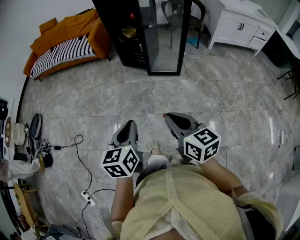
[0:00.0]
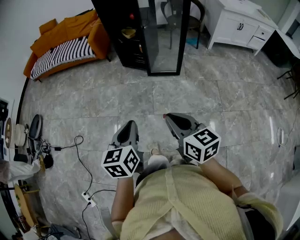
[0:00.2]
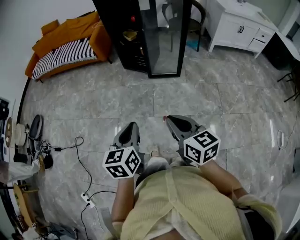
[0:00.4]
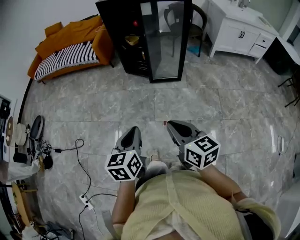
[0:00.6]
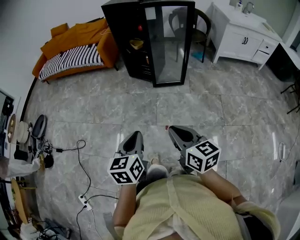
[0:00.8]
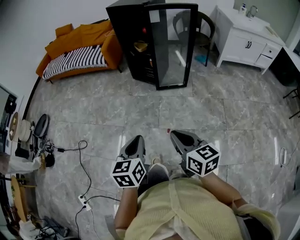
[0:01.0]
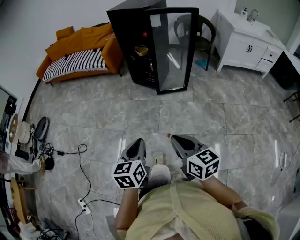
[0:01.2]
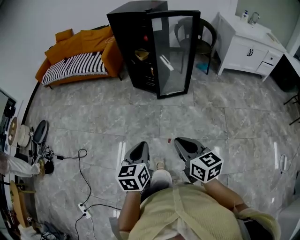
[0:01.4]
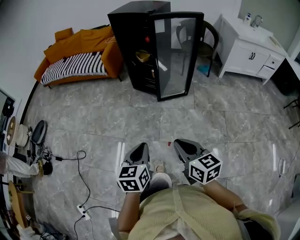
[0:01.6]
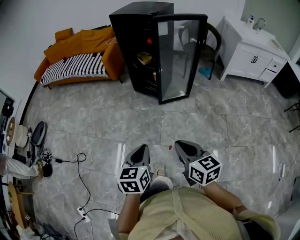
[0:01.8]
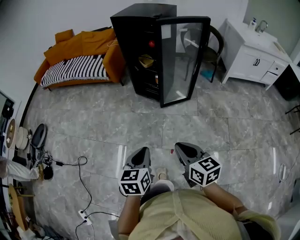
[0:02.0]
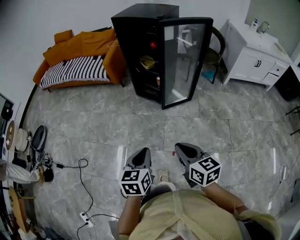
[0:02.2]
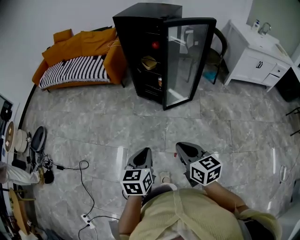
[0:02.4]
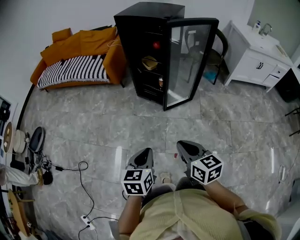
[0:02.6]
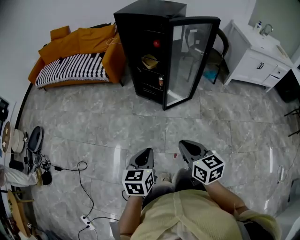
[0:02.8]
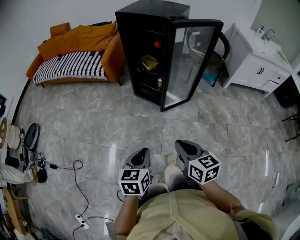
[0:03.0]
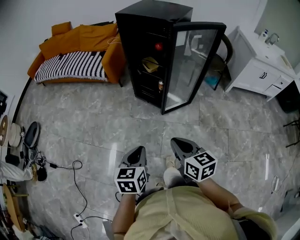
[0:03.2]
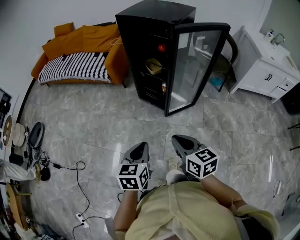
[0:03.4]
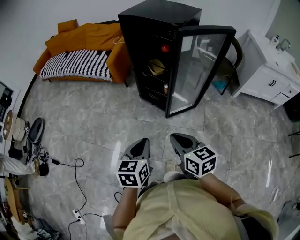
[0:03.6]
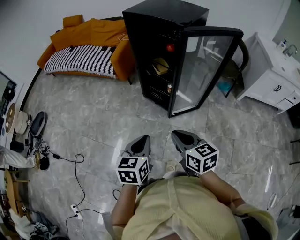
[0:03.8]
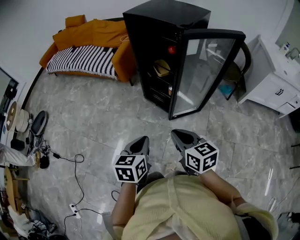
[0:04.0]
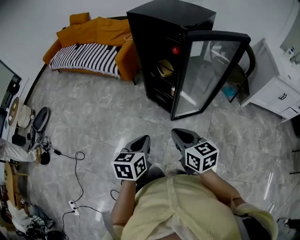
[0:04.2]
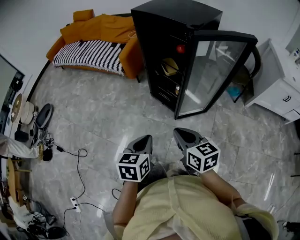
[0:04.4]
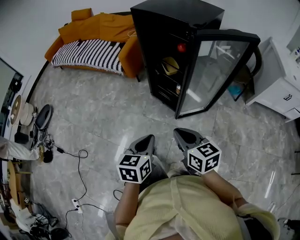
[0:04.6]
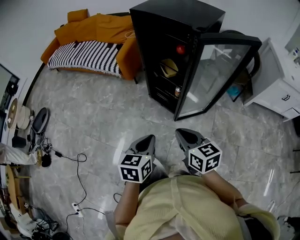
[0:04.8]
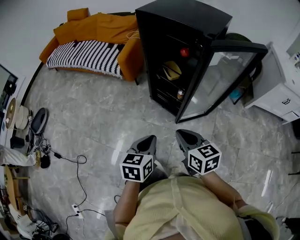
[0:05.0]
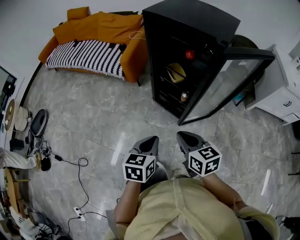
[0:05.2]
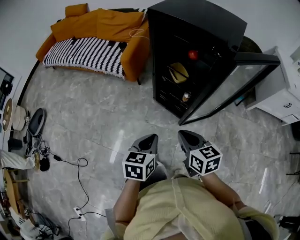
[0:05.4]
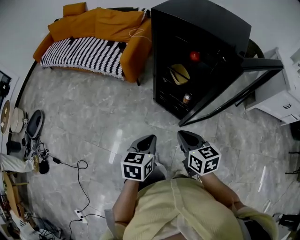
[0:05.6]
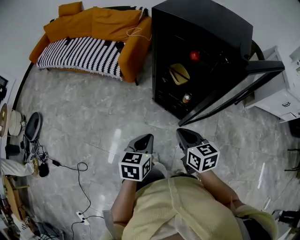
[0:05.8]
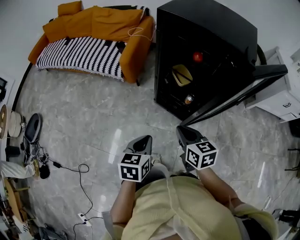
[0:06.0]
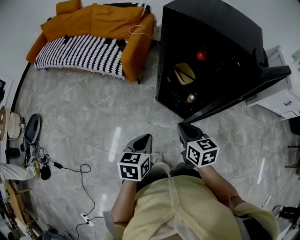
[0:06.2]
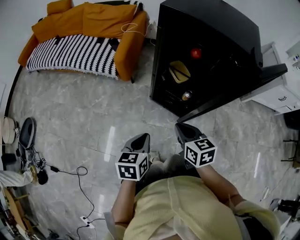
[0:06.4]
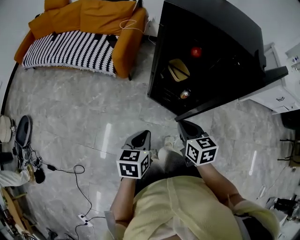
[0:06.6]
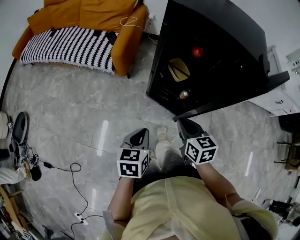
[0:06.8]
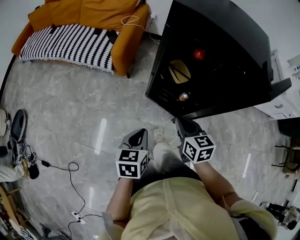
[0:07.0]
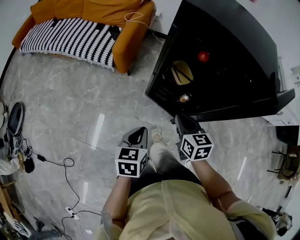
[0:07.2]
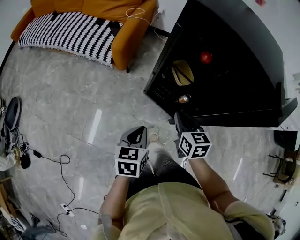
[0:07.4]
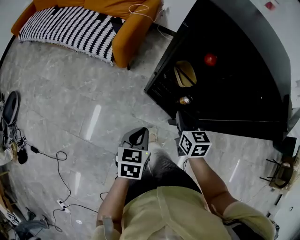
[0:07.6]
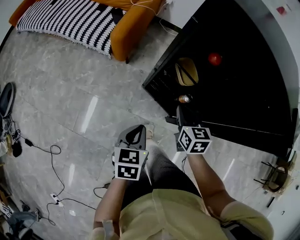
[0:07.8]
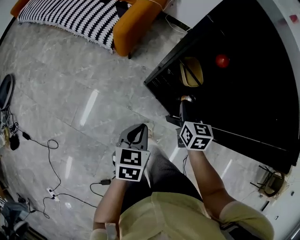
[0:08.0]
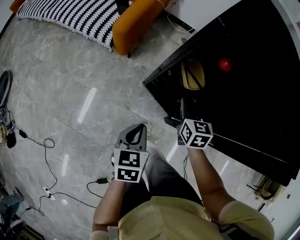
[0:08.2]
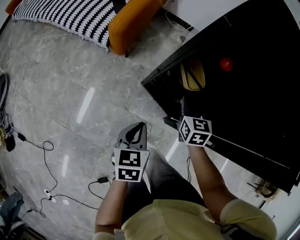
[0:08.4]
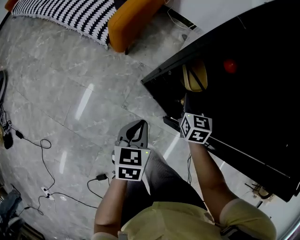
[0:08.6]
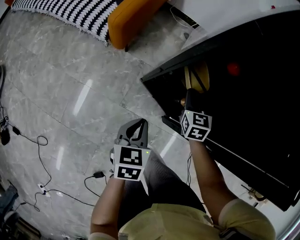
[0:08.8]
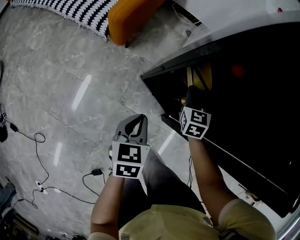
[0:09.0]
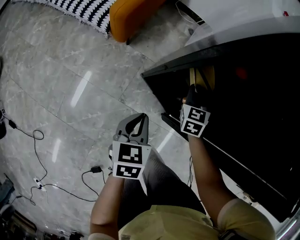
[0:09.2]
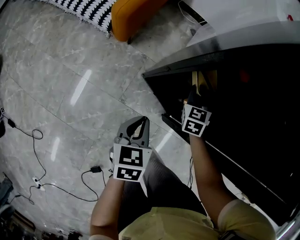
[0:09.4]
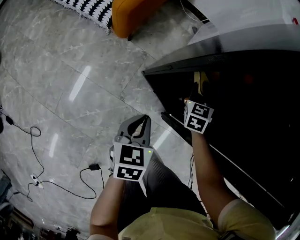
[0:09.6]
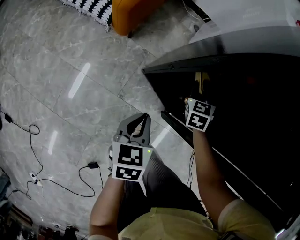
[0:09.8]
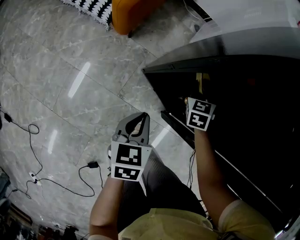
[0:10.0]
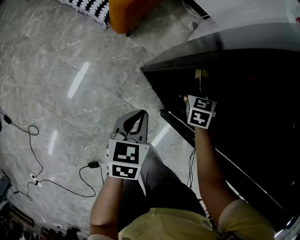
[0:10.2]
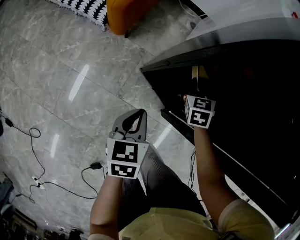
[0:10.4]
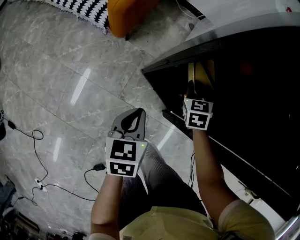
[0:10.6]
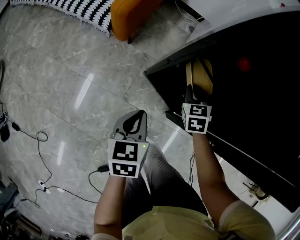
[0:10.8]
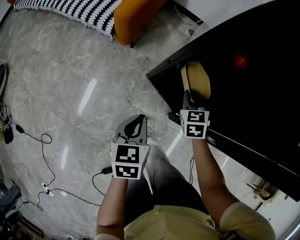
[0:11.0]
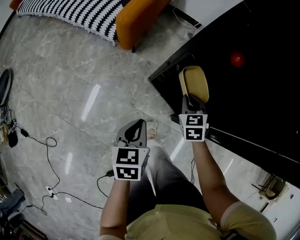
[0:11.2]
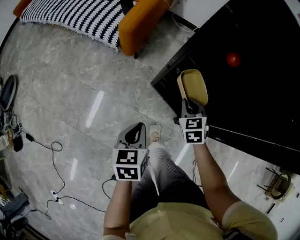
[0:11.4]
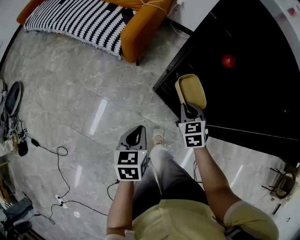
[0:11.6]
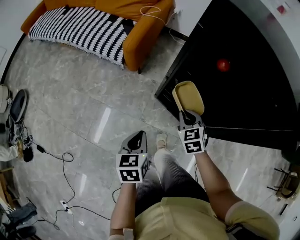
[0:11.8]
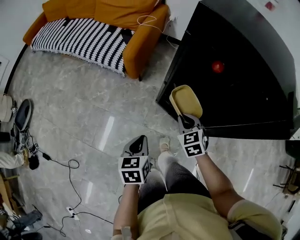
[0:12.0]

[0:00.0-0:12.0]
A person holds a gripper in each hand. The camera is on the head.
0:00.0 to 0:01.6: Both grippers move forward, some 5 cm.
0:01.6 to 0:03.0: The grippers both shift forward by roughly 15 cm.
0:03.0 to 0:04.4: The left gripper is displaced forward and to the right by approximately 15 cm; the right gripper travels forward by some 20 cm.
0:04.4 to 0:06.0: The two grippers go about 20 cm forward and to the left.
0:06.0 to 0:07.6: The grippers both shift forward and downward by about 15 cm.
0:07.6 to 0:09.0: The left gripper travels downward and forward by about 15 cm. The right gripper travels forward and downward by approximately 20 cm, and turns by about 20 degrees.
0:09.0 to 0:10.4: The right gripper changes place by about 5 cm.
0:10.4 to 0:12.0: The right gripper goes about 25 cm backward and upward. Meanwhile the left gripper goes some 20 cm backward, upward and to the left.

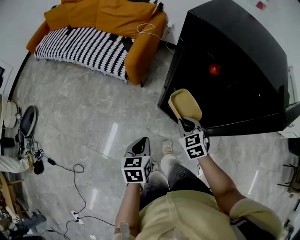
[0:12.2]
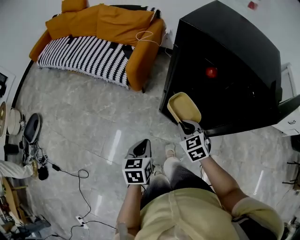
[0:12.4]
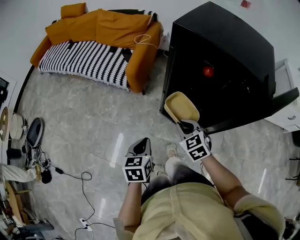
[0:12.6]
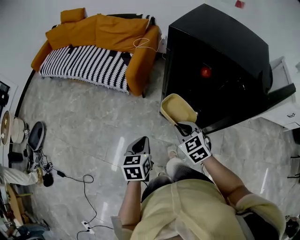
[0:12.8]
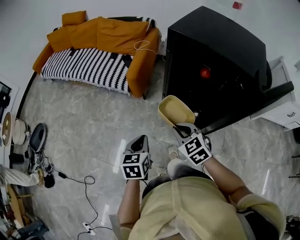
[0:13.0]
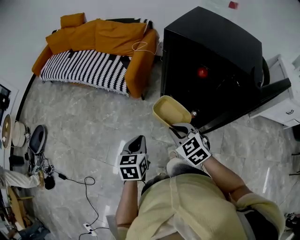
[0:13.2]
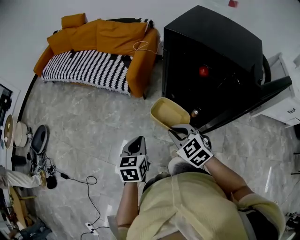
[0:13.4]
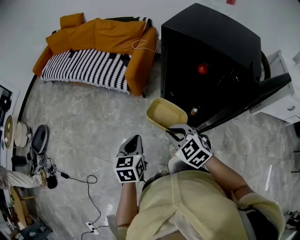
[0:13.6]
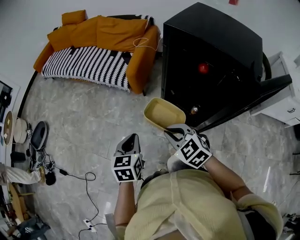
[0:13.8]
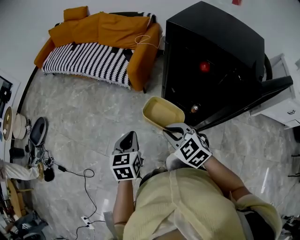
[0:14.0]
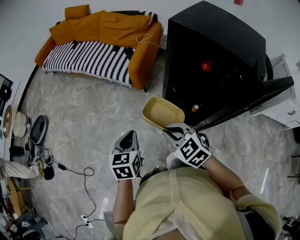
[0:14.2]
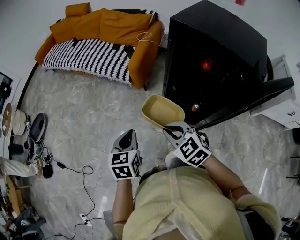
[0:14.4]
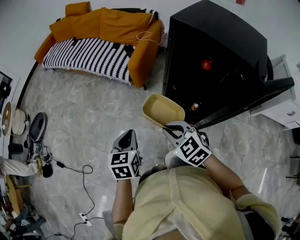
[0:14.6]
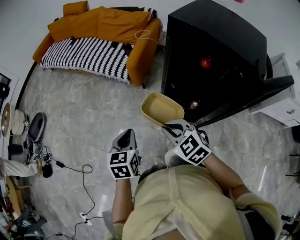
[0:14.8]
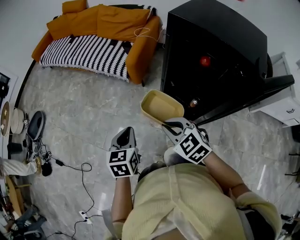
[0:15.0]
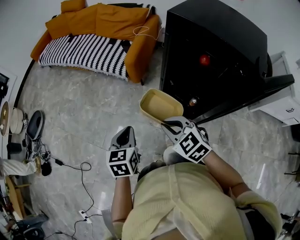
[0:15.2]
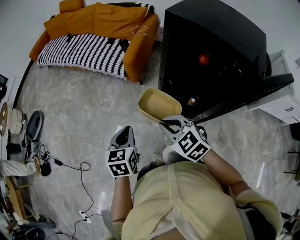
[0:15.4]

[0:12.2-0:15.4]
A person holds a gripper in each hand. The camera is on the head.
0:12.2 to 0:13.8: The right gripper shifts approximately 20 cm upward, backward and to the left, and swivels some 20 degrees; the left gripper travels upward and to the left by some 10 cm.
0:13.8 to 0:15.4: The grippers move only a little.

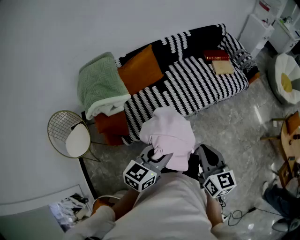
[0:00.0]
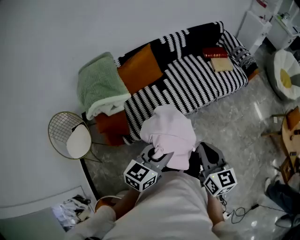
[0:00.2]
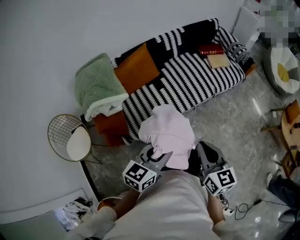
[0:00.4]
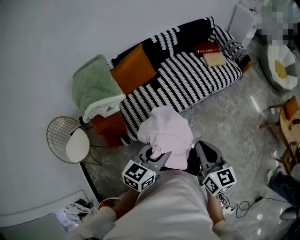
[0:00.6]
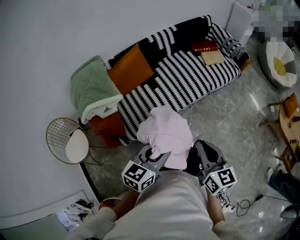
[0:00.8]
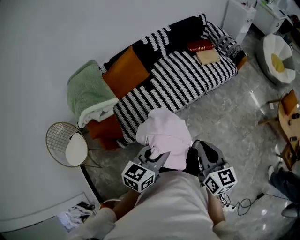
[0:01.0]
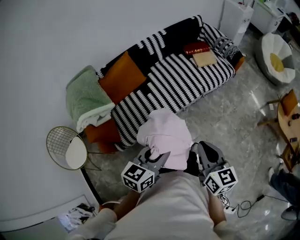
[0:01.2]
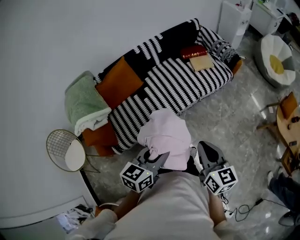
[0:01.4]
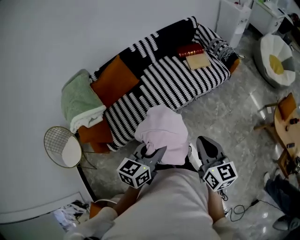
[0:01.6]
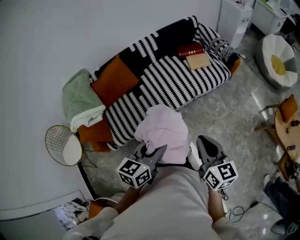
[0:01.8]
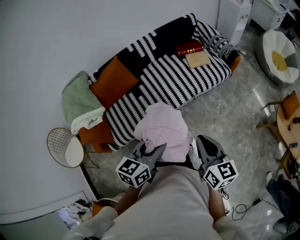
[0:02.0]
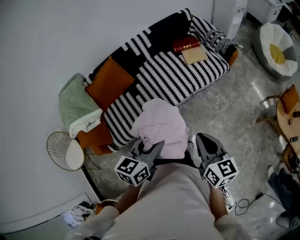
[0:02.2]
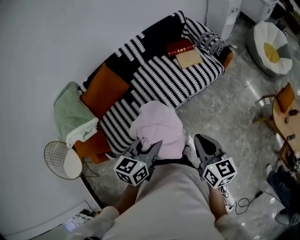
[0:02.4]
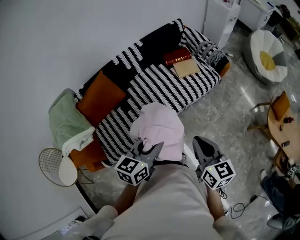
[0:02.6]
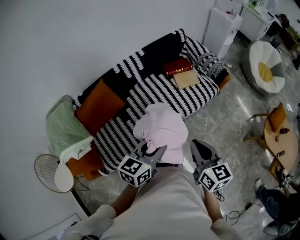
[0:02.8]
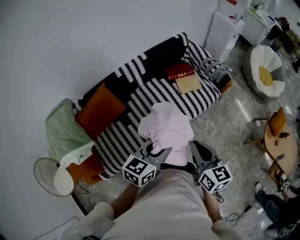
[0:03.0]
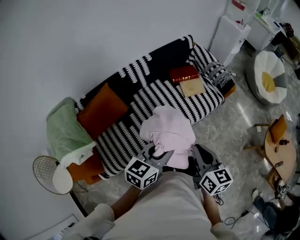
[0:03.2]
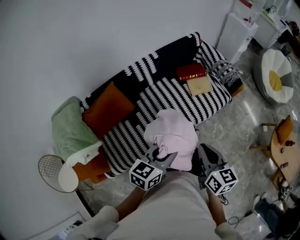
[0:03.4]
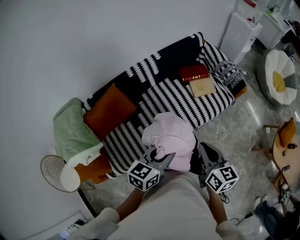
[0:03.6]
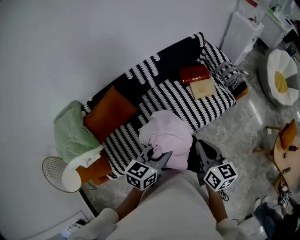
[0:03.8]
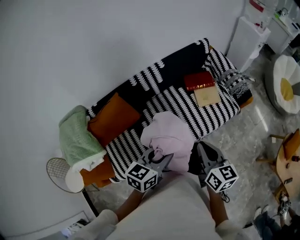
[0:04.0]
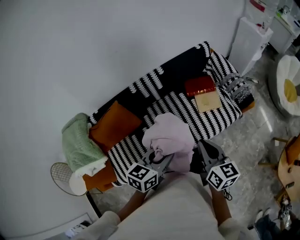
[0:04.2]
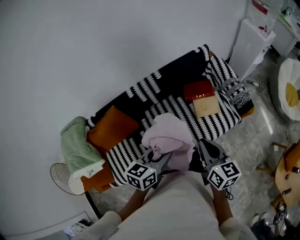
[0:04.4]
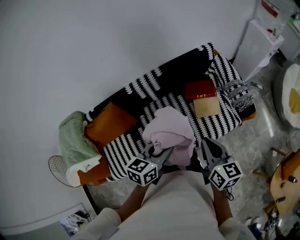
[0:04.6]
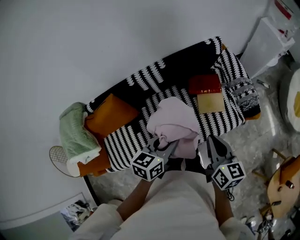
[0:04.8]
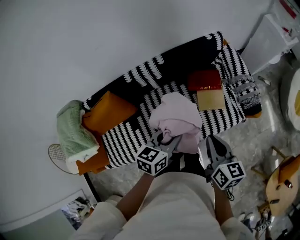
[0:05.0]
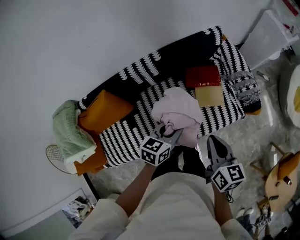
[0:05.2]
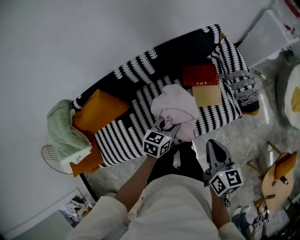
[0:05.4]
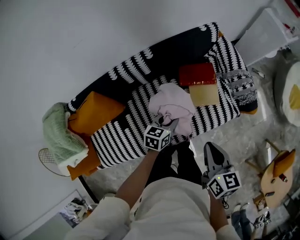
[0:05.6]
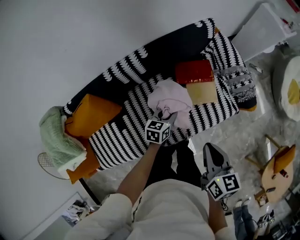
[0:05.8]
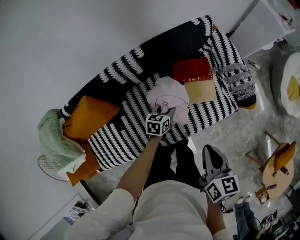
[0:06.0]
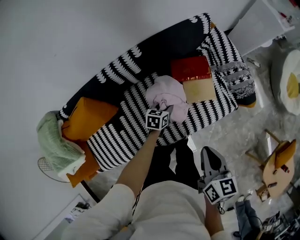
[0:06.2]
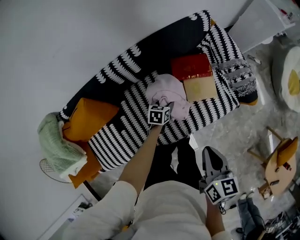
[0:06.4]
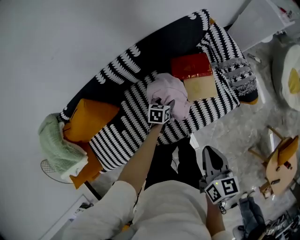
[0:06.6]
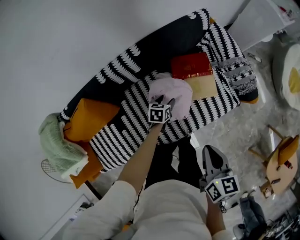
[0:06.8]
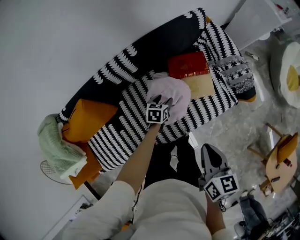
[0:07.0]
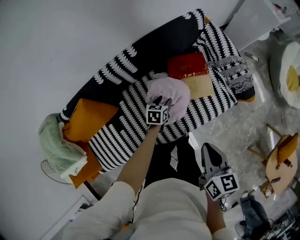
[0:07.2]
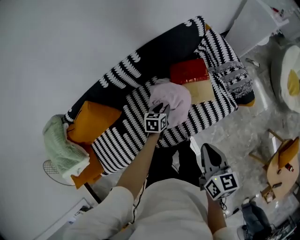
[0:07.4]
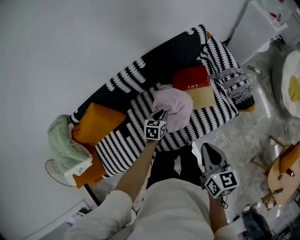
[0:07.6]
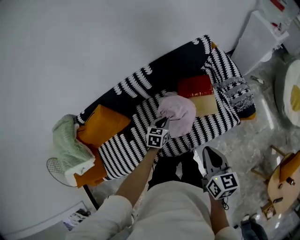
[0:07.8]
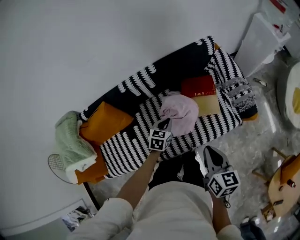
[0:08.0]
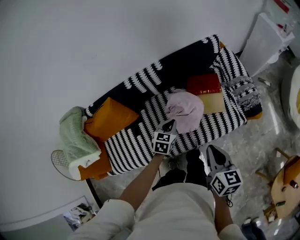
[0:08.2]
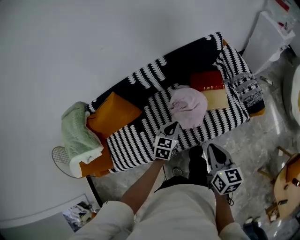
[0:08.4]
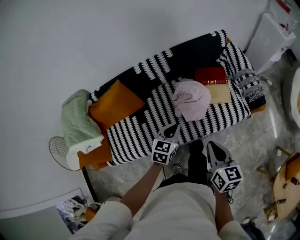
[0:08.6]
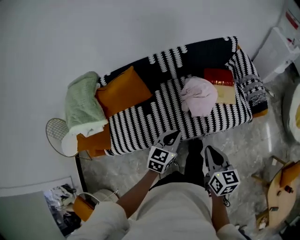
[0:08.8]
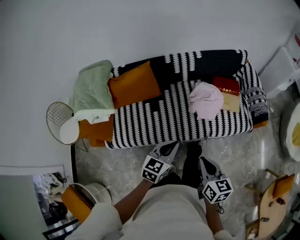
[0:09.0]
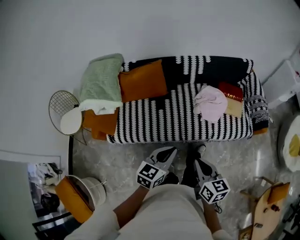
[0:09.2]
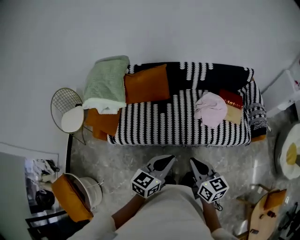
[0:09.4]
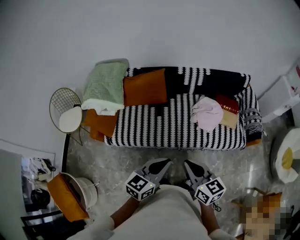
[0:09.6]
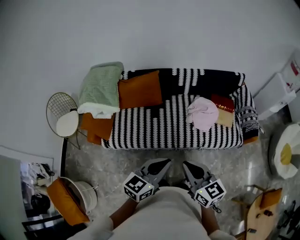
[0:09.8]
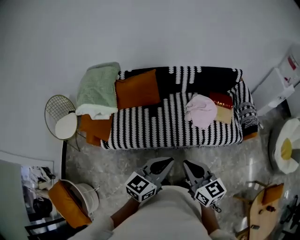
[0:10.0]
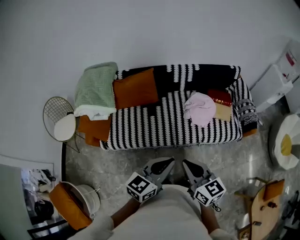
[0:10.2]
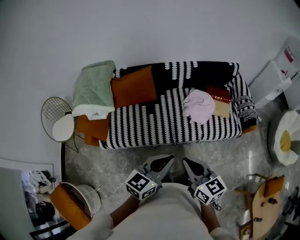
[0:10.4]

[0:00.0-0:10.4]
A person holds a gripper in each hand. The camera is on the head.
0:00.0 to 0:01.4: Both grippers travel together to the right, some 15 cm.
0:01.4 to 0:03.0: The grippers both shift forward by roughly 25 cm.
0:03.0 to 0:04.4: Both grippers move forward, roughly 25 cm.
0:04.4 to 0:06.0: The right gripper travels downward and forward by roughly 15 cm. Meanwhile the left gripper goes some 40 cm downward and forward.
0:06.0 to 0:07.4: The left gripper opens, then closes again.
0:07.4 to 0:09.0: The right gripper shifts some 35 cm backward and to the left, and turns by about 20 degrees. Meanwhile the left gripper is displaced backward and upward by approximately 50 cm, changes its angle by approximately 30 degrees, and closes its fingers.
0:09.0 to 0:10.4: The right gripper moves to the left, upward and backward, about 15 cm, and swivels some 20 degrees, while the left gripper goes roughly 15 cm upward and backward.
